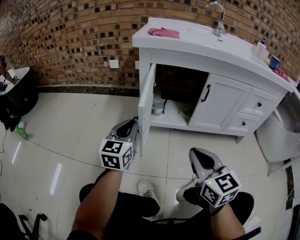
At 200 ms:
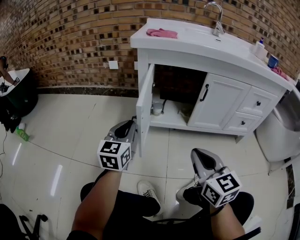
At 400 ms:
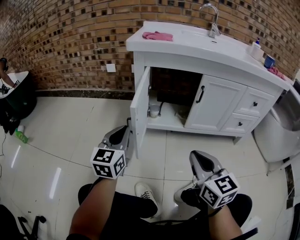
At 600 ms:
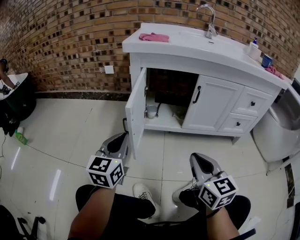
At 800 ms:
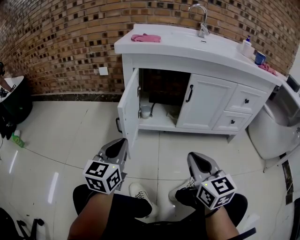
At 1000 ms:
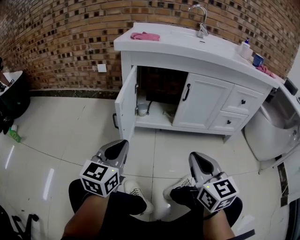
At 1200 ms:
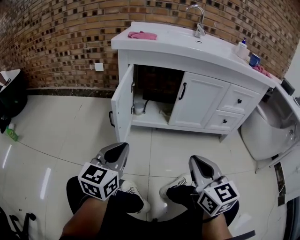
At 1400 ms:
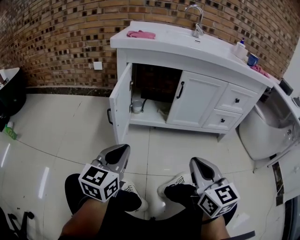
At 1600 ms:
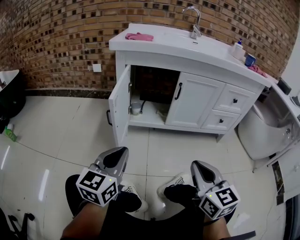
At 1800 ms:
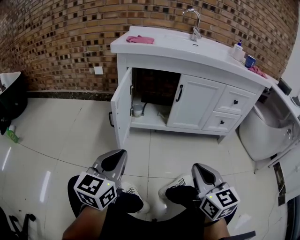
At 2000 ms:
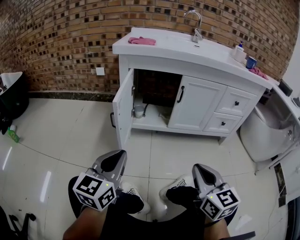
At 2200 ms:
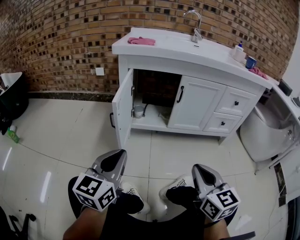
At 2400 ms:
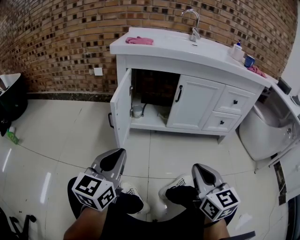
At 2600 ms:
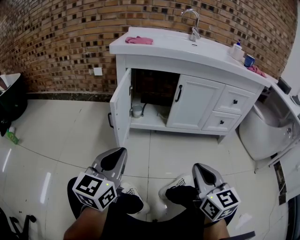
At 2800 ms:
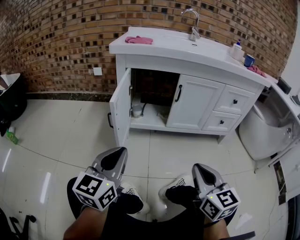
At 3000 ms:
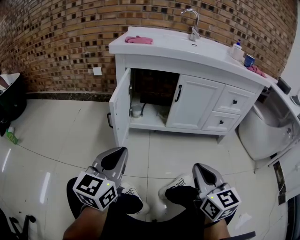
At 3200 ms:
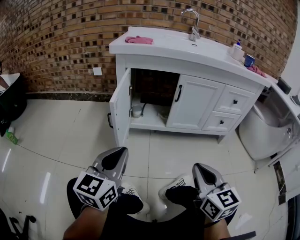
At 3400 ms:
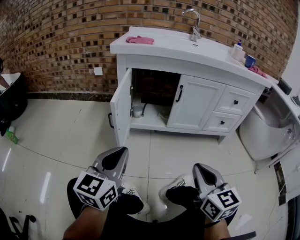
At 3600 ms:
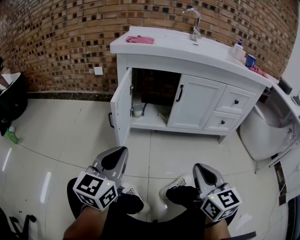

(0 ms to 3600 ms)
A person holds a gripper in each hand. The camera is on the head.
0 ms - 1800 ms: The right gripper is displaced to the right and backward by roughly 15 cm. The left gripper shifts about 20 cm backward and to the right.
1800 ms - 3600 ms: The grippers stay close to where they were, moving slightly.

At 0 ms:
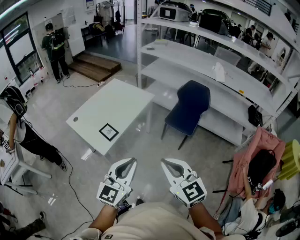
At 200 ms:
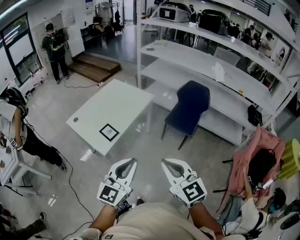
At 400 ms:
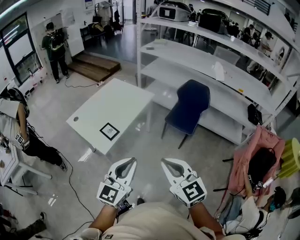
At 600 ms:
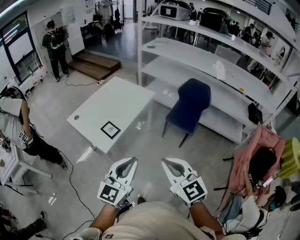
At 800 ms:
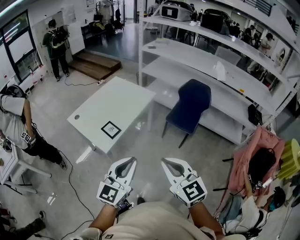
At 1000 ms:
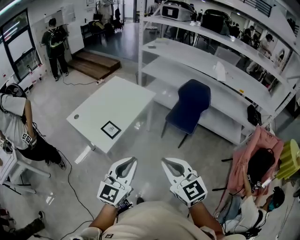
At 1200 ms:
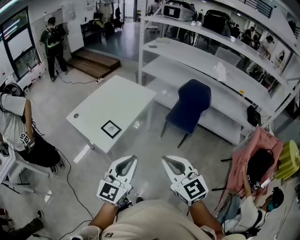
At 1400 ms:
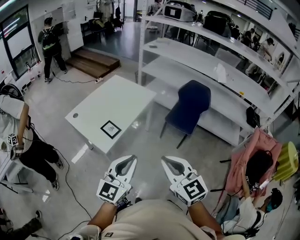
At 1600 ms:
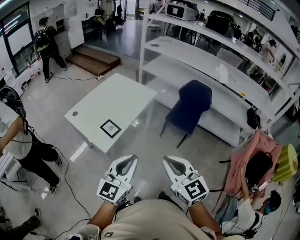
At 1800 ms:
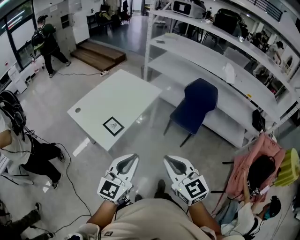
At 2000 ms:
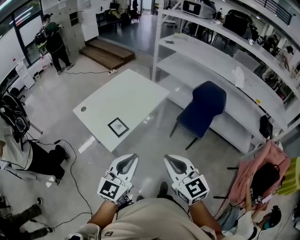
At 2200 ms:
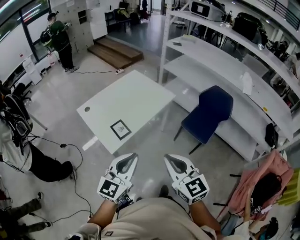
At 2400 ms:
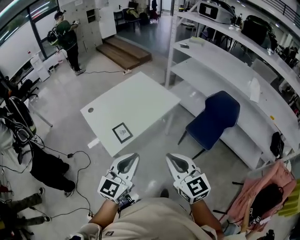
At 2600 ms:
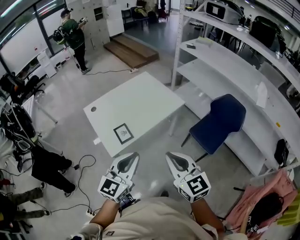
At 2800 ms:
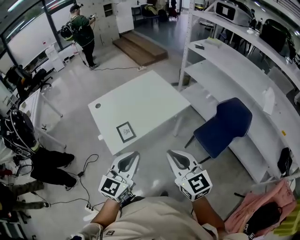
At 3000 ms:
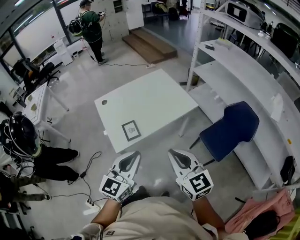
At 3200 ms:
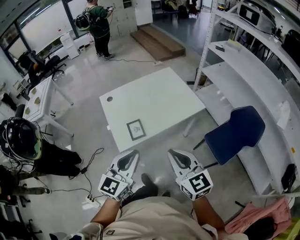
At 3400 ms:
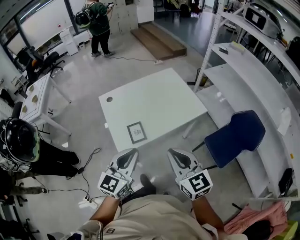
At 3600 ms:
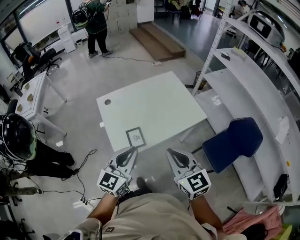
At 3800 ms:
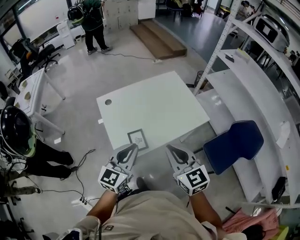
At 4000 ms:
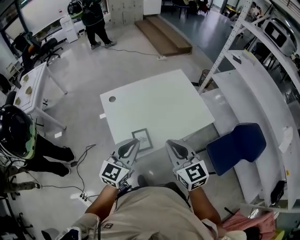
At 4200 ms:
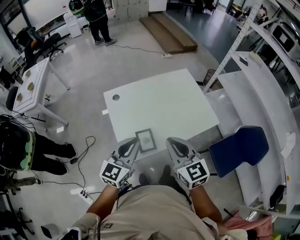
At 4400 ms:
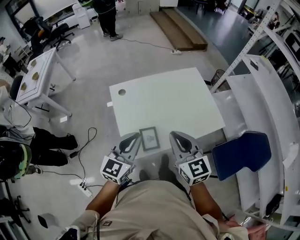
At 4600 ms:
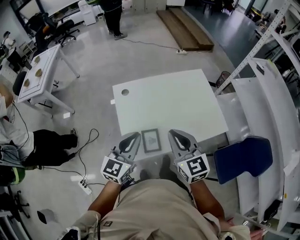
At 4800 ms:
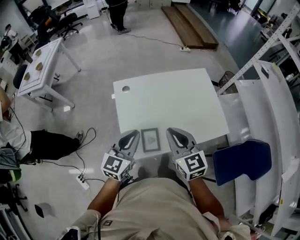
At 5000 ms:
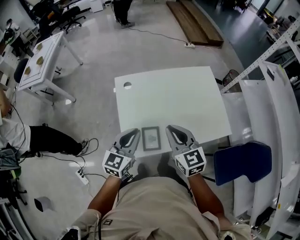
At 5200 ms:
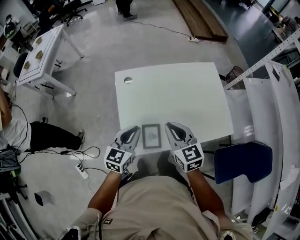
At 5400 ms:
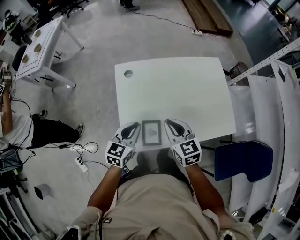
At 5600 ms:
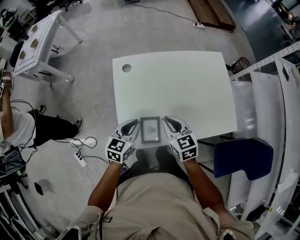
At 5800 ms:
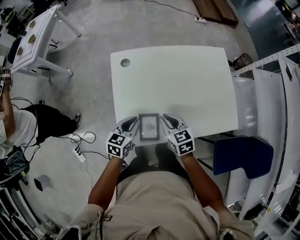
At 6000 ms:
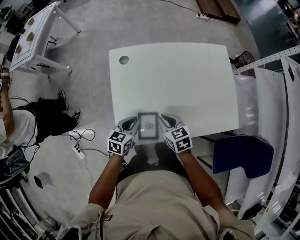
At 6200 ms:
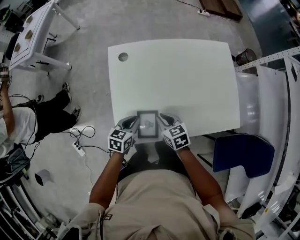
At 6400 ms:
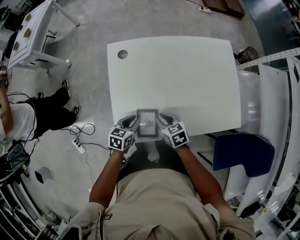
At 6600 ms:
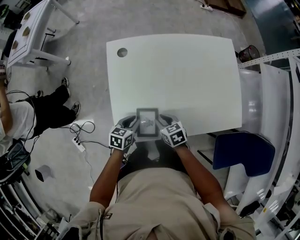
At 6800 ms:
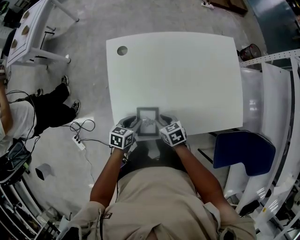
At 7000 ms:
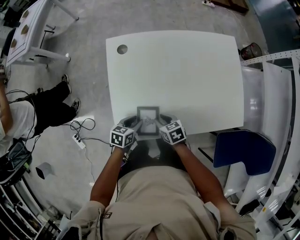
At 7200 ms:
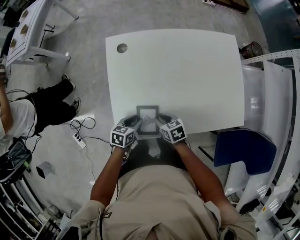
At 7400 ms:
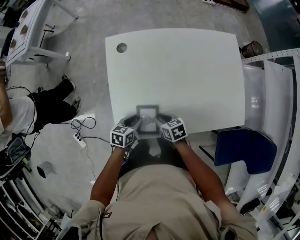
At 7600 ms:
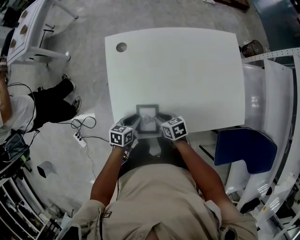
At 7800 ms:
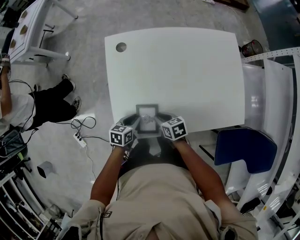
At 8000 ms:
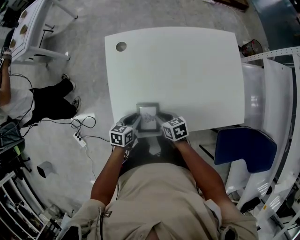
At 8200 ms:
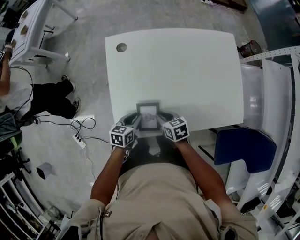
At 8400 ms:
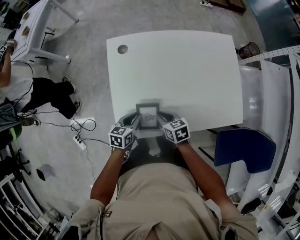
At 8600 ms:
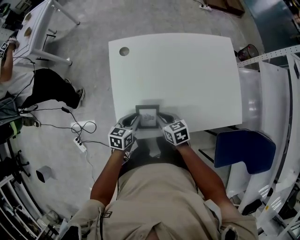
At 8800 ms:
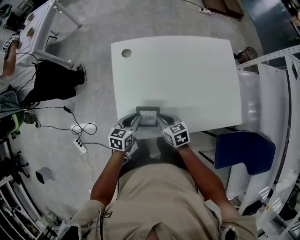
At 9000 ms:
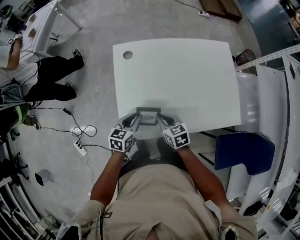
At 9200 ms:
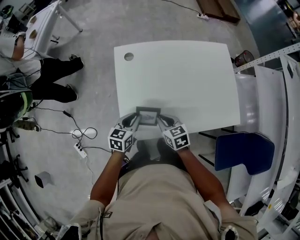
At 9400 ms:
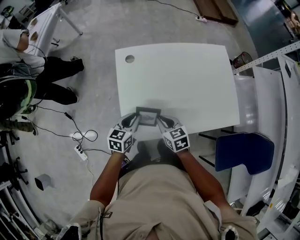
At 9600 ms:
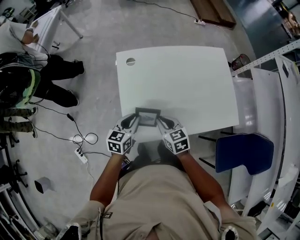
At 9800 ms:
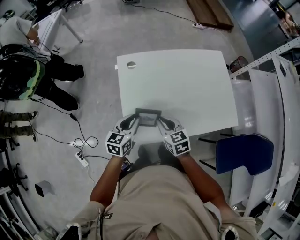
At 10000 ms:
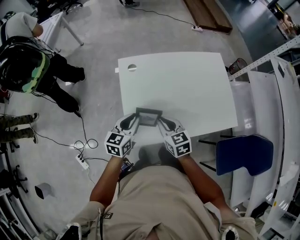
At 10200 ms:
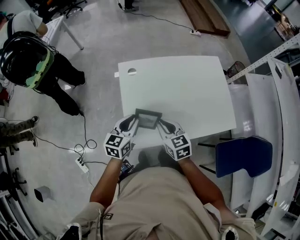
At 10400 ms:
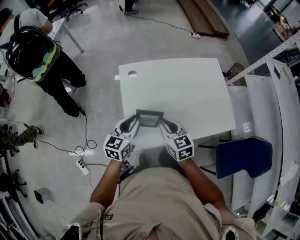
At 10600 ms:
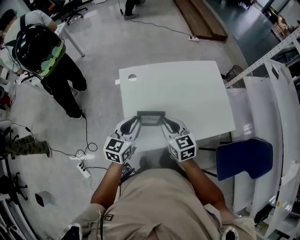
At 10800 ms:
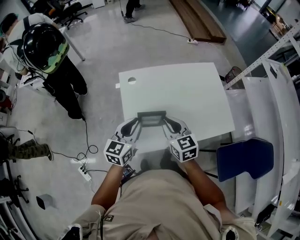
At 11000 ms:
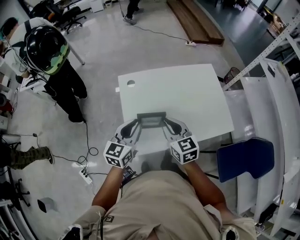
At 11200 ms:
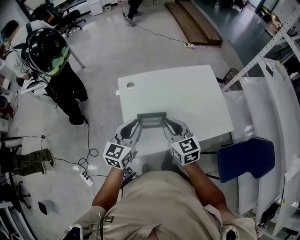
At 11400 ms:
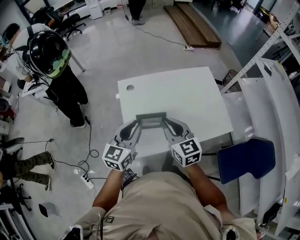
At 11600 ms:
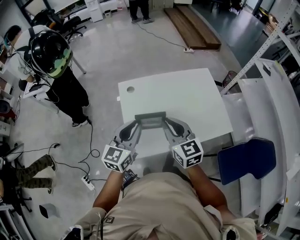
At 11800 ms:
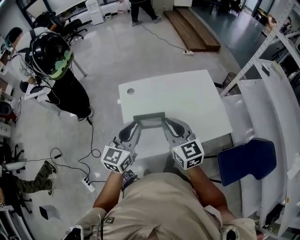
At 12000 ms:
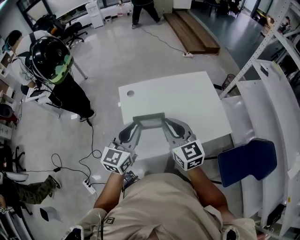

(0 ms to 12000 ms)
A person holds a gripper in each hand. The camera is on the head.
0 ms - 1600 ms: Both grippers move to the left, about 5 cm.
1600 ms - 3000 ms: The right gripper changes place by some 25 cm, and swivels about 30 degrees. The left gripper ends up roughly 20 cm from where it was, and rotates approximately 30 degrees.
3000 ms - 4400 ms: Both grippers travel together forward and to the left, approximately 30 cm.
4400 ms - 6000 ms: The right gripper shifts about 35 cm downward and forward, and changes its angle by approximately 40 degrees; the left gripper travels downward by roughly 30 cm, and tilts its fingers about 30 degrees downward.
6000 ms - 7600 ms: The grippers both shift downward by roughly 10 cm. The right gripper turns by roughly 20 degrees.
7600 ms - 9000 ms: The two grippers go about 10 cm upward.
9000 ms - 10400 ms: Both grippers travel together upward, some 15 cm.
10400 ms - 12000 ms: Both grippers move upward, some 15 cm. The right gripper rotates about 20 degrees.

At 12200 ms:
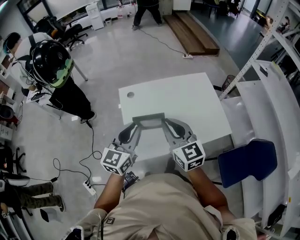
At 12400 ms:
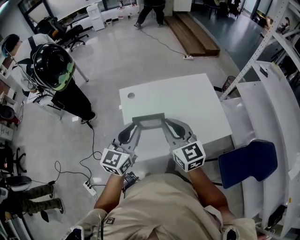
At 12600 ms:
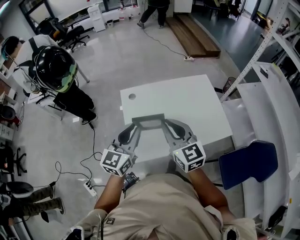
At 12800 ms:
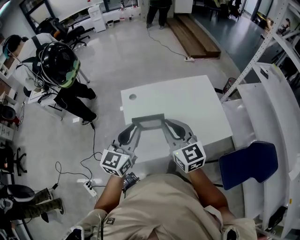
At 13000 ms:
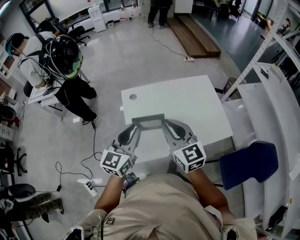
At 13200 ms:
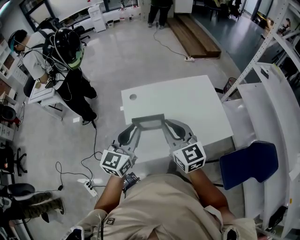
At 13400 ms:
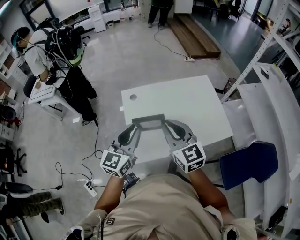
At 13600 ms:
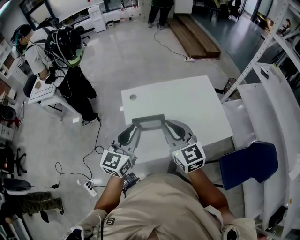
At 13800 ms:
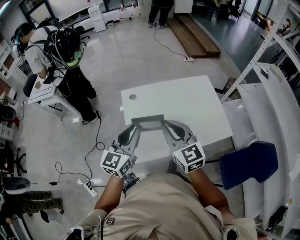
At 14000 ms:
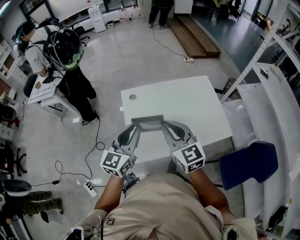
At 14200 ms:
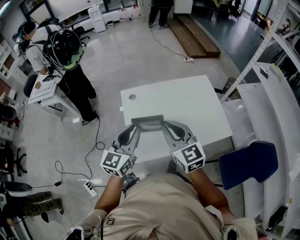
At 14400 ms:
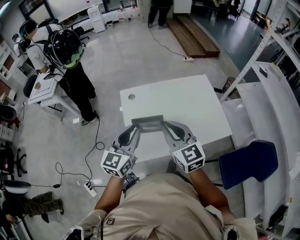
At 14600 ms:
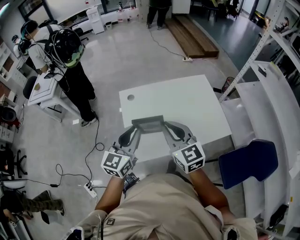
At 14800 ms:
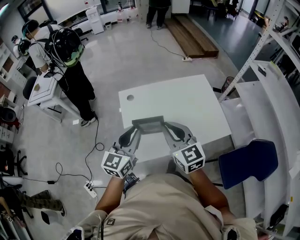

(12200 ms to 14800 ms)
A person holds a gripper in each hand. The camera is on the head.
12200 ms - 14800 ms: The grippers move only a little.

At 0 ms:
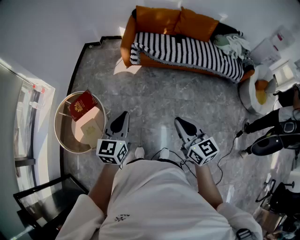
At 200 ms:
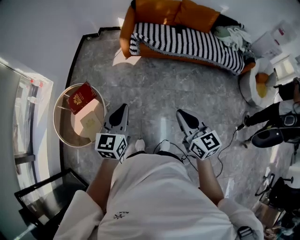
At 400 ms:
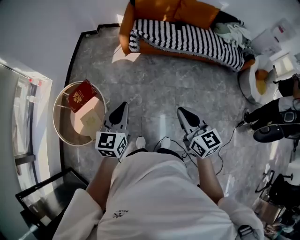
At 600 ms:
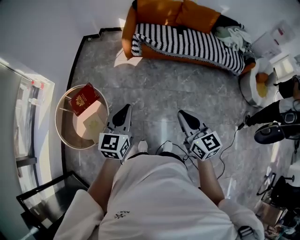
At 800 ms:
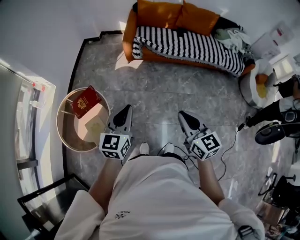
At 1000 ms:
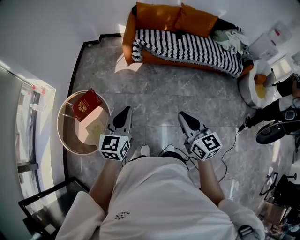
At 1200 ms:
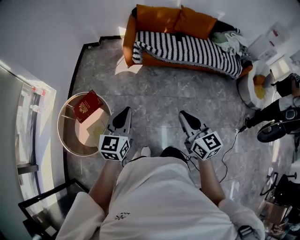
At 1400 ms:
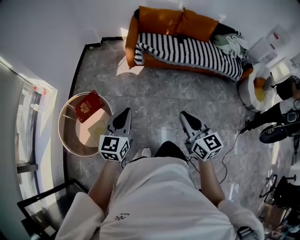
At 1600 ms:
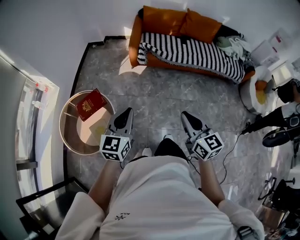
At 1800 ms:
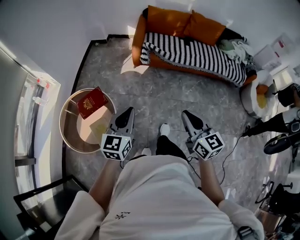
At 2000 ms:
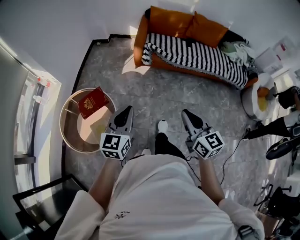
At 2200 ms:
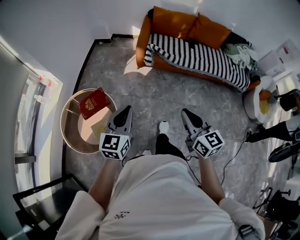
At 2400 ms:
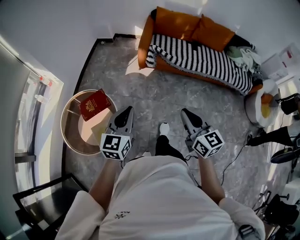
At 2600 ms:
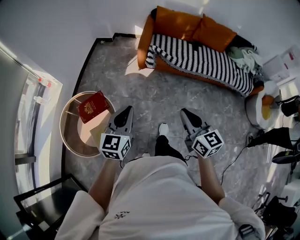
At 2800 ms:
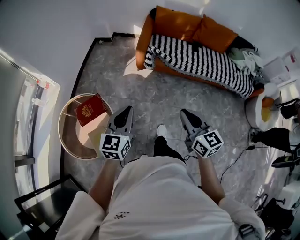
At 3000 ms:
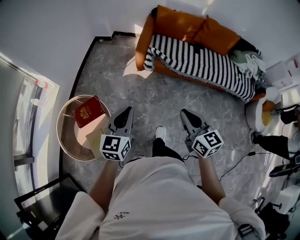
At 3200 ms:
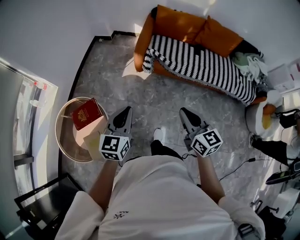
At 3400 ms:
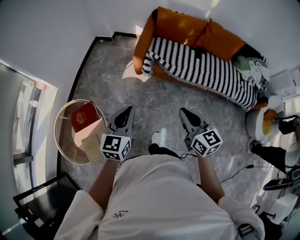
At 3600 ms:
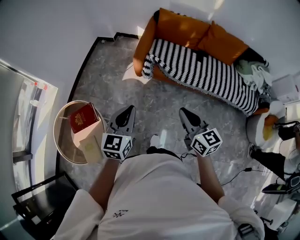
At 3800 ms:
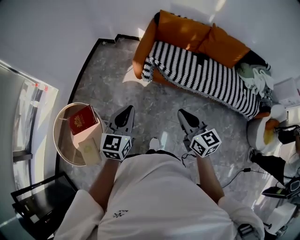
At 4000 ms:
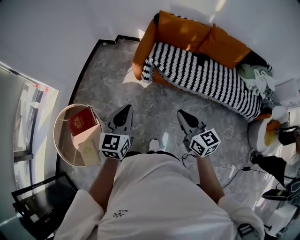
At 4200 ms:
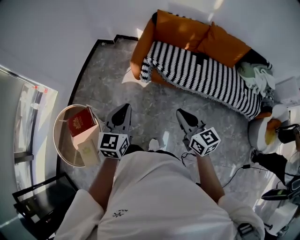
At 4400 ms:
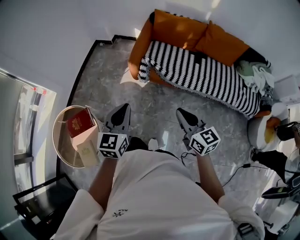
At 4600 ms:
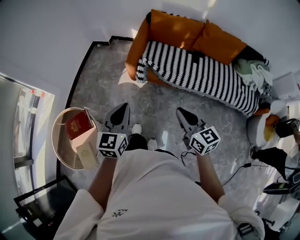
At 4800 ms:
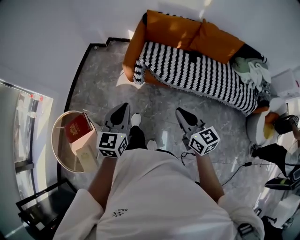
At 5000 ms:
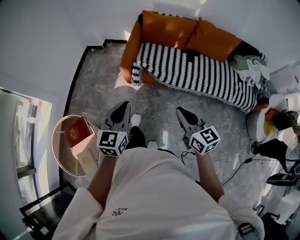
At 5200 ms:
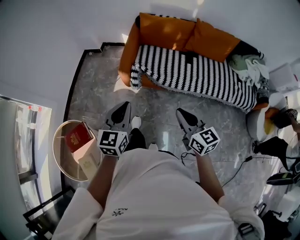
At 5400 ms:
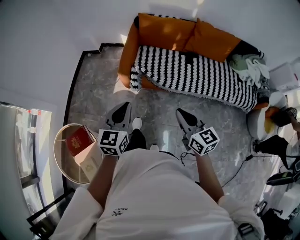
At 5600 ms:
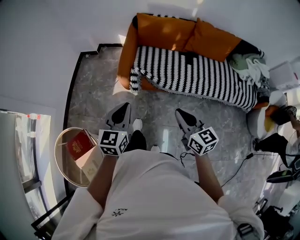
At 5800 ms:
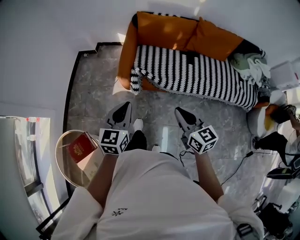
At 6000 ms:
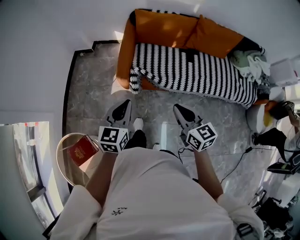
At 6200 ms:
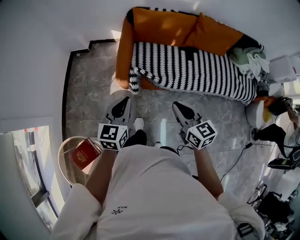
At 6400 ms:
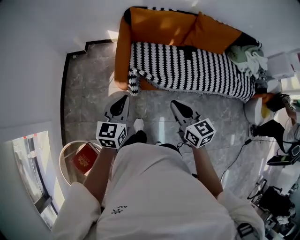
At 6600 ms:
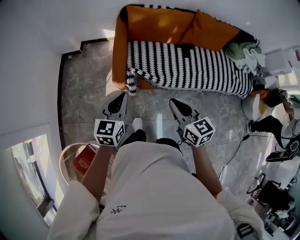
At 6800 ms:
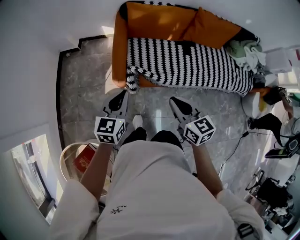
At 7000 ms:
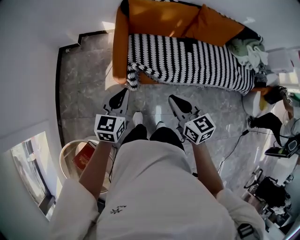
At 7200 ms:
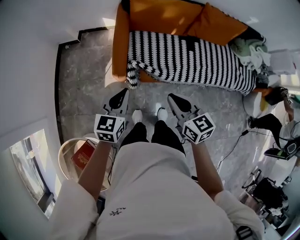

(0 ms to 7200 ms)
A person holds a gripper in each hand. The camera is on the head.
0 ms - 1400 ms: Both grippers move to the left, about 5 cm.
1400 ms - 2800 ms: Both grippers move forward, roughly 15 cm.
2800 ms - 4400 ms: Both grippers travel together forward and to the right, roughly 25 cm.
4400 ms - 5800 ms: Both grippers move forward, about 15 cm.
5800 ms - 7200 ms: The left gripper shifts some 20 cm forward and downward; the right gripper moves forward and to the left, roughly 15 cm.
